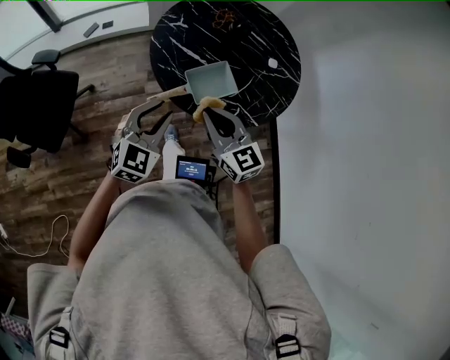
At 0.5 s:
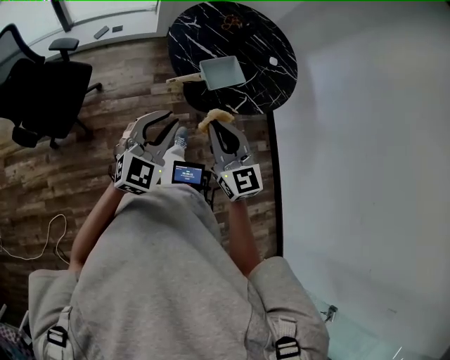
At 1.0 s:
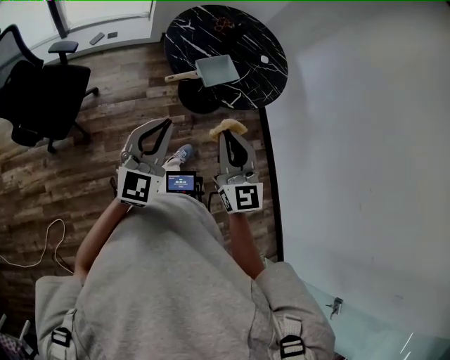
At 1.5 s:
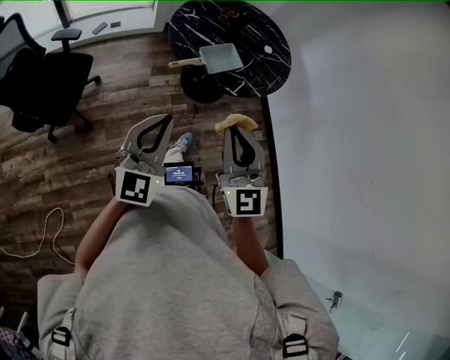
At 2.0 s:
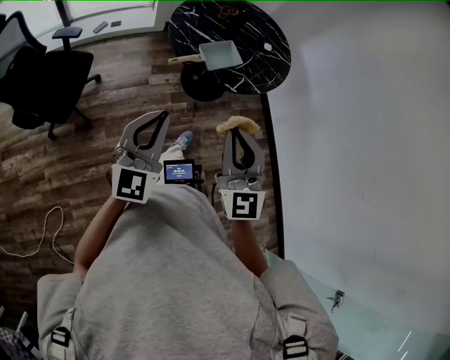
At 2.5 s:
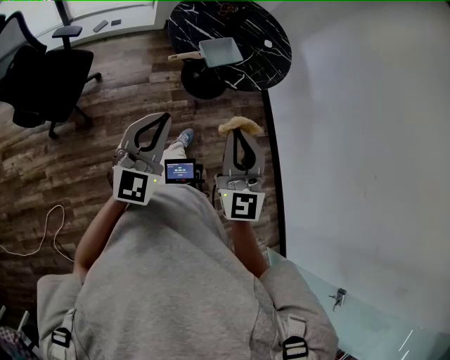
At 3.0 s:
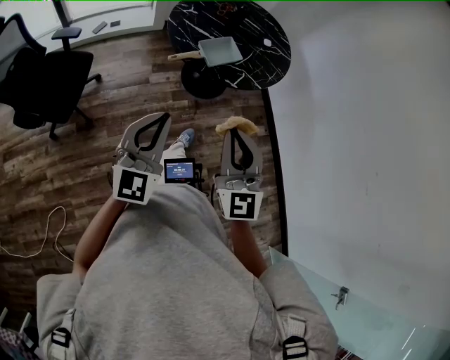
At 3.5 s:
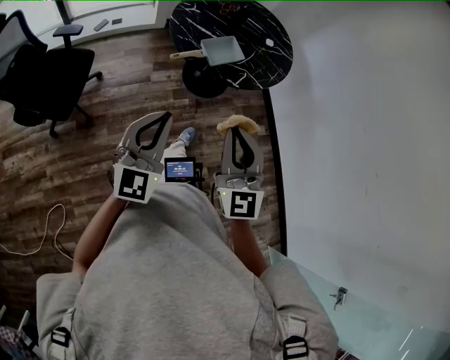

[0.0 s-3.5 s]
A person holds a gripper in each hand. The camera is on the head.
0.0 to 2.0 s: The left gripper shifts roughly 30 cm backward, rotates approximately 20 degrees, and closes up. The right gripper goes approximately 35 cm backward and upward, and changes its angle by about 40 degrees.
2.0 to 3.5 s: The grippers stay close to where they were, moving slightly.

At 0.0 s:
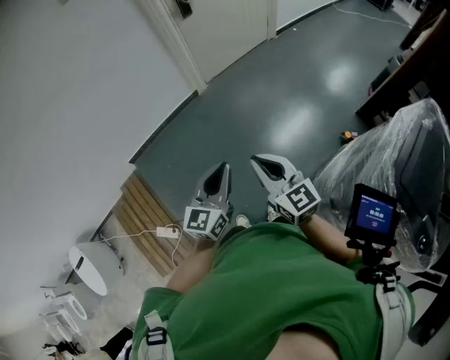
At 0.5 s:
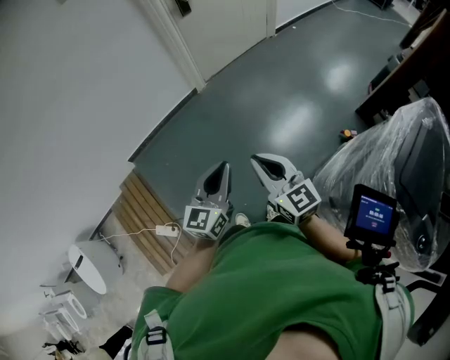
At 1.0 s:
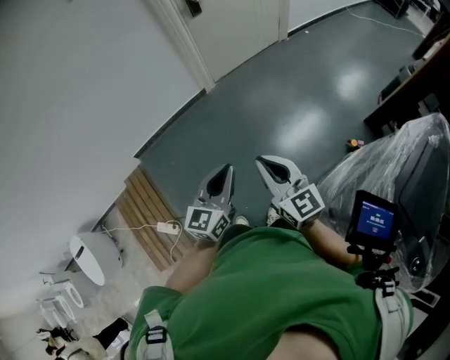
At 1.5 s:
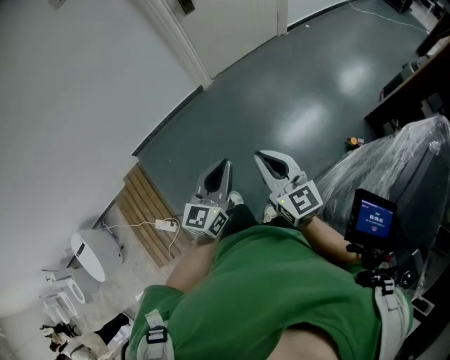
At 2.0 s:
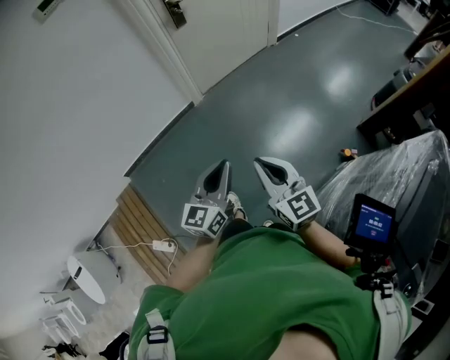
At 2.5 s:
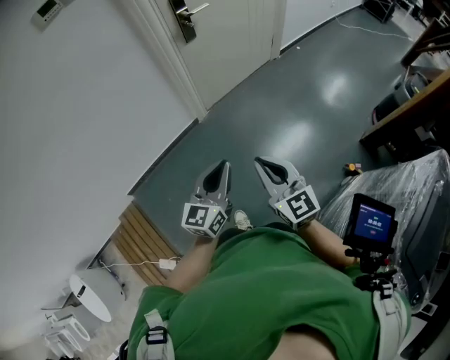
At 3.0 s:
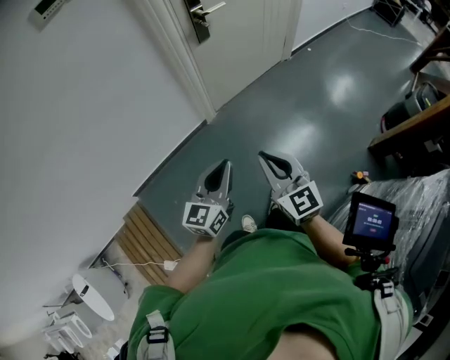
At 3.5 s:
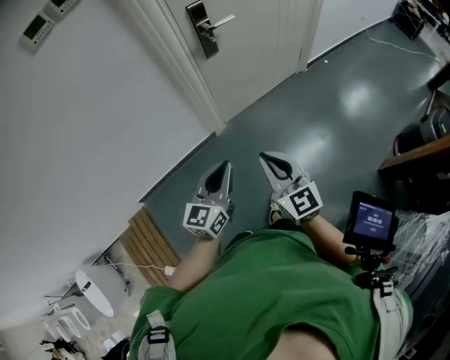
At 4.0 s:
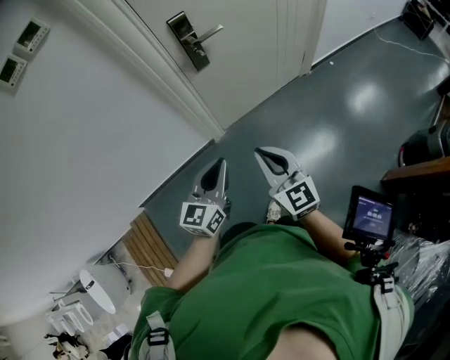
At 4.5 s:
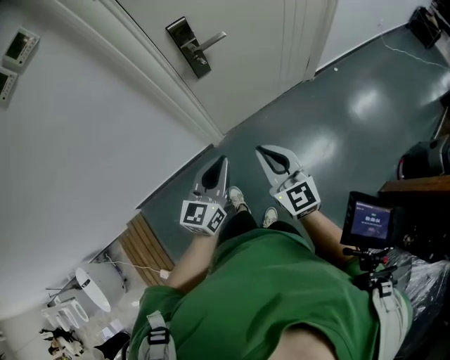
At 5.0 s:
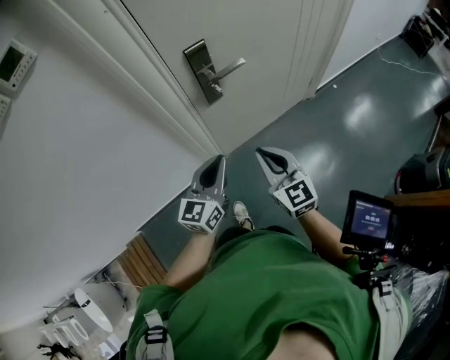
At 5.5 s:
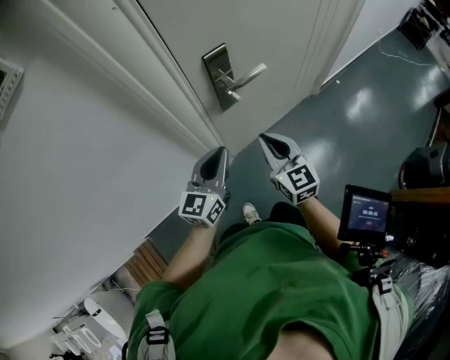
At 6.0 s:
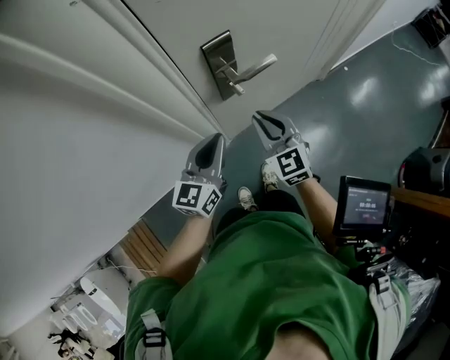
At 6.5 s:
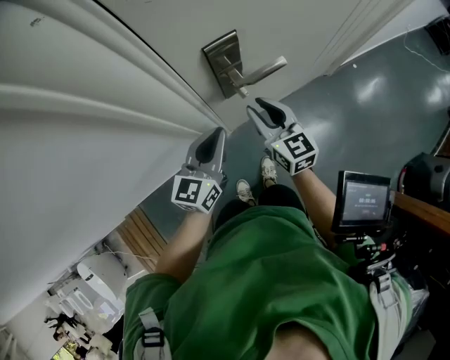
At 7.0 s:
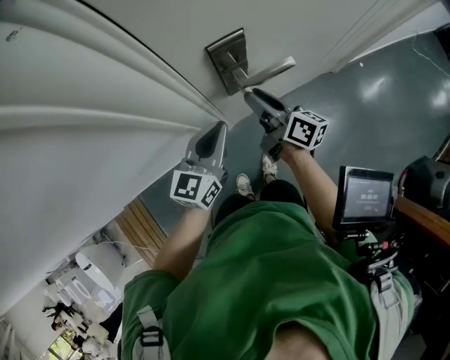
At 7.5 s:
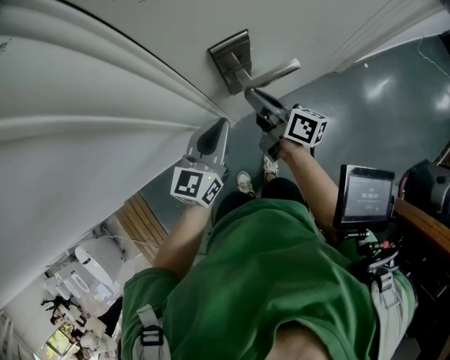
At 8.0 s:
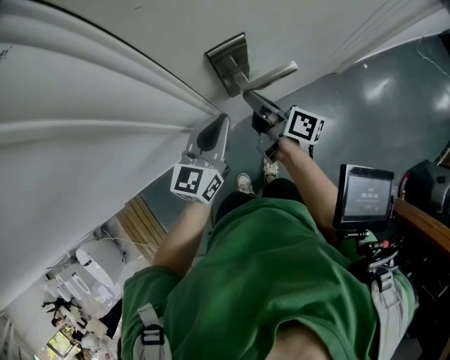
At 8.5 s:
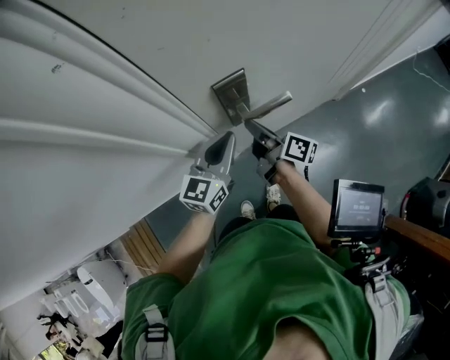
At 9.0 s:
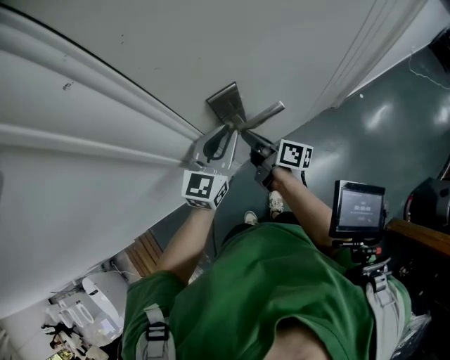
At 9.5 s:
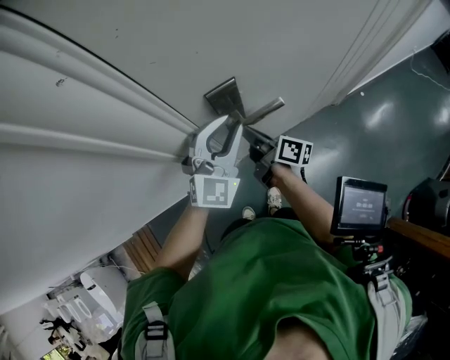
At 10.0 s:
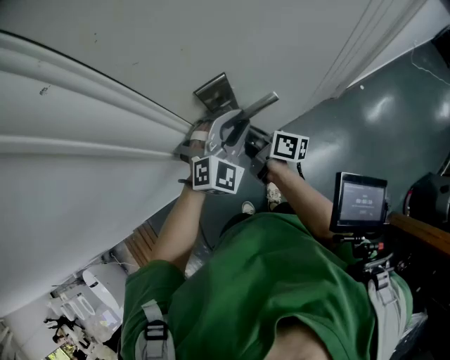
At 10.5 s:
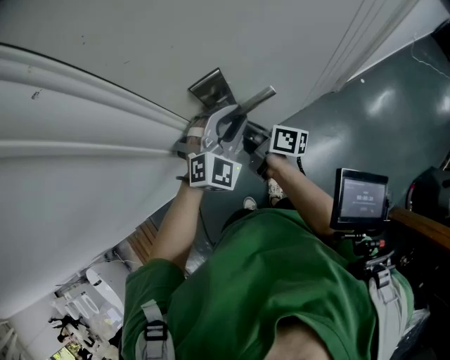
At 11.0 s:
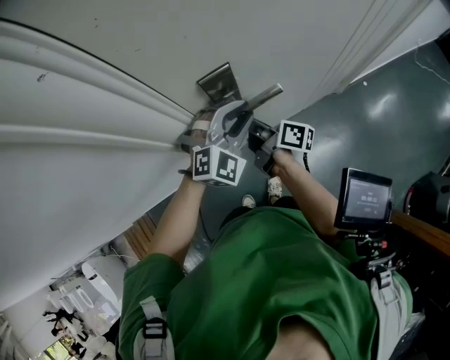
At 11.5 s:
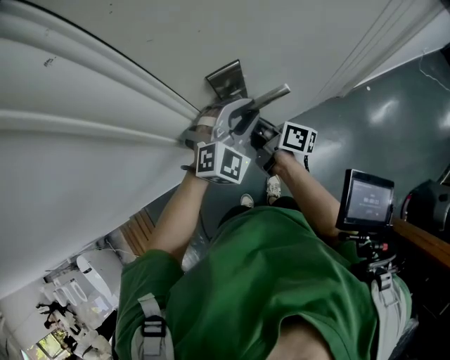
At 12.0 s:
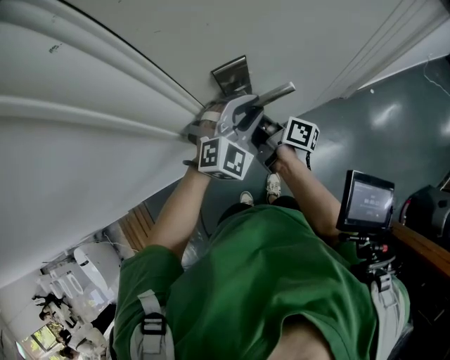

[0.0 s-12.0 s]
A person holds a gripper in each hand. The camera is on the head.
0.0 to 2.0 s: The left gripper heads forward and to the right, covering some 10 cm. Meanwhile the right gripper goes about 10 cm to the right and forward.
2.0 to 4.0 s: The two grippers travel together, forward, about 50 cm.
4.0 to 6.0 s: The grippers both shift forward by some 35 cm.
6.0 to 8.0 s: The two grippers go approximately 10 cm forward. The right gripper rolls clockwise, seen from behind, by roughly 80 degrees, and opens and closes again.
8.0 to 10.0 s: The left gripper heads to the right, covering about 5 cm, rotates around the line of its fingers by approximately 60 degrees, clockwise from behind, and opens up.
10.0 to 12.0 s: The grippers move only a little.

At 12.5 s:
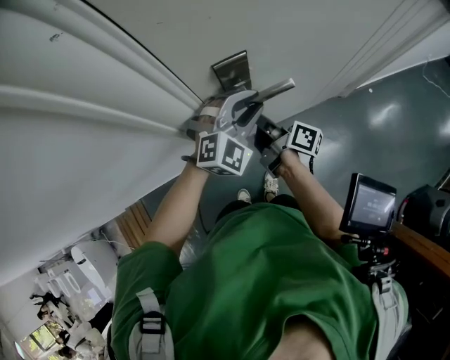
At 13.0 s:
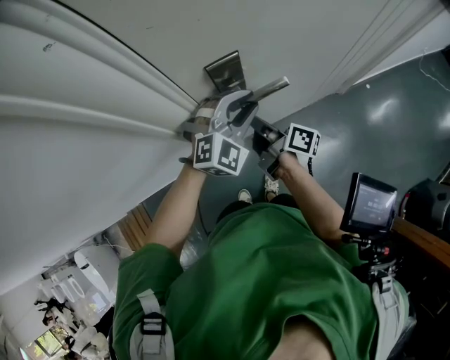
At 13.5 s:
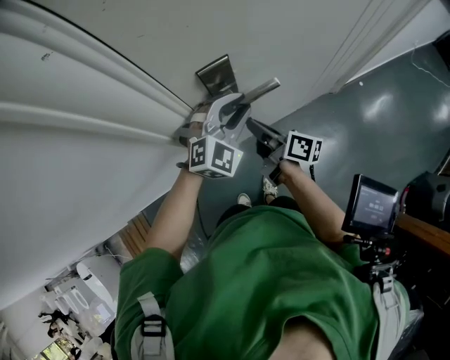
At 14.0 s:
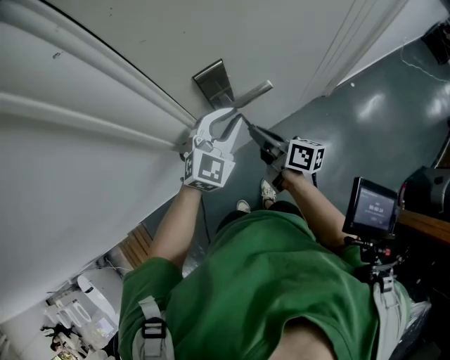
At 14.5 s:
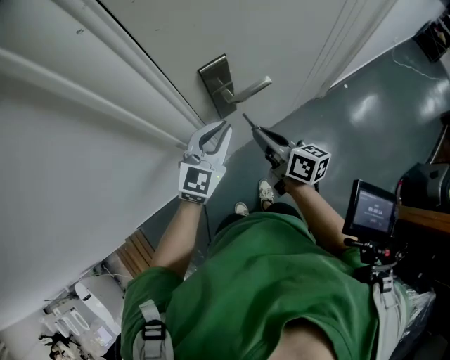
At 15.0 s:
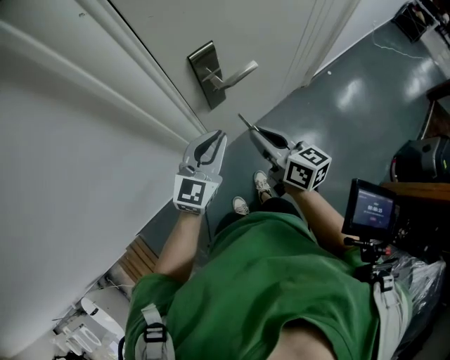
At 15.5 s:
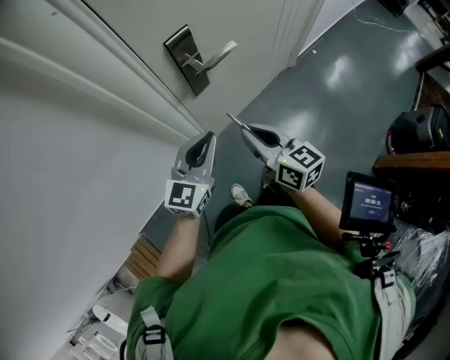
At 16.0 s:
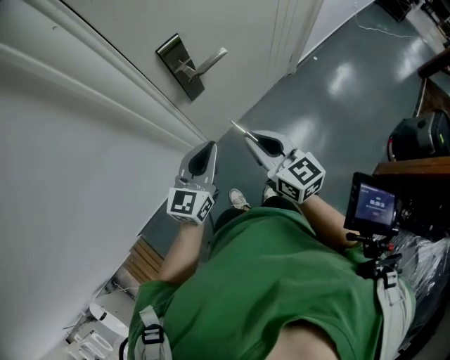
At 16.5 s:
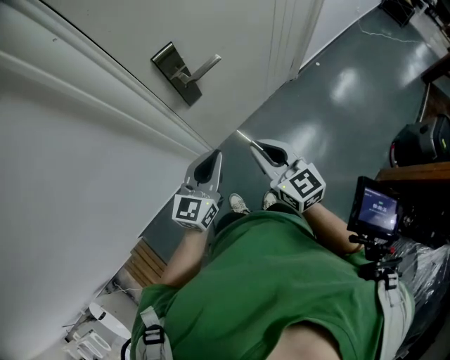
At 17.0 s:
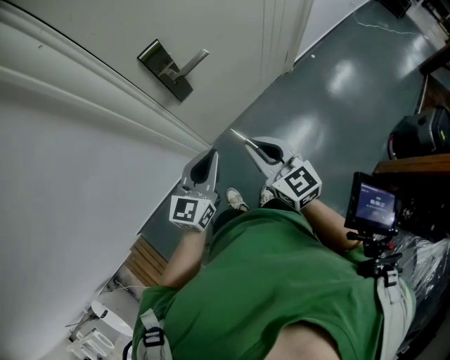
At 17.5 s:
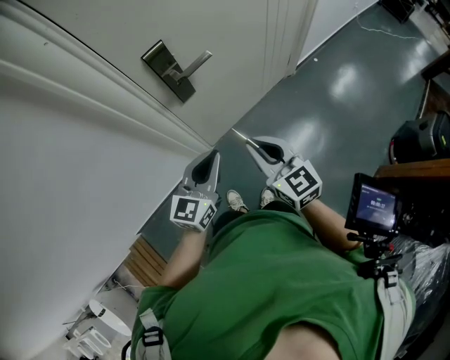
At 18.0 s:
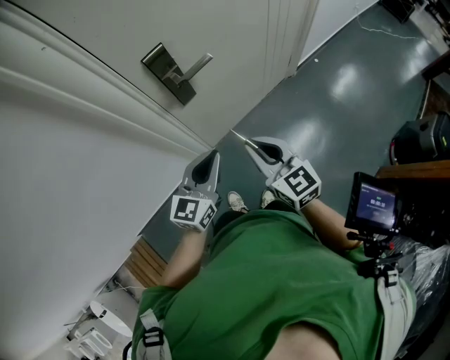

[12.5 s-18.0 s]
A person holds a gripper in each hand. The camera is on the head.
12.5 to 14.5 s: The left gripper heads backward, covering roughly 5 cm, and turns by some 30 degrees; the right gripper shifts about 10 cm upward and backward, and turns by some 30 degrees.
14.5 to 16.0 s: The two grippers go about 15 cm backward. The right gripper rotates roughly 30 degrees; the left gripper swivels roughly 20 degrees.
16.0 to 18.0 s: The left gripper changes place by roughly 5 cm.

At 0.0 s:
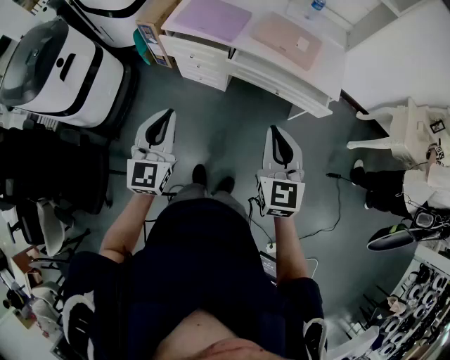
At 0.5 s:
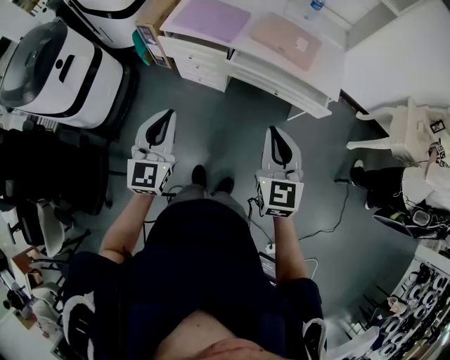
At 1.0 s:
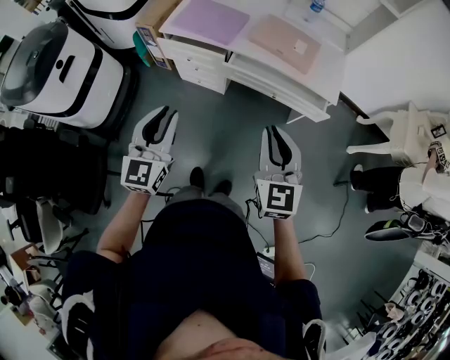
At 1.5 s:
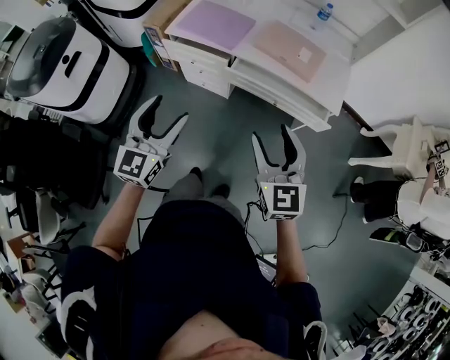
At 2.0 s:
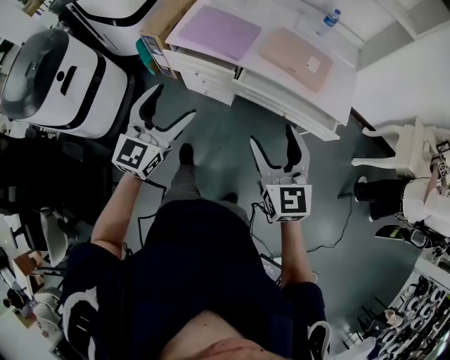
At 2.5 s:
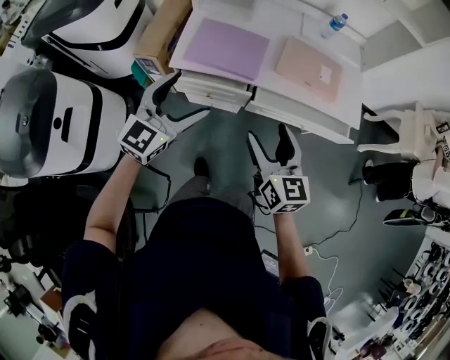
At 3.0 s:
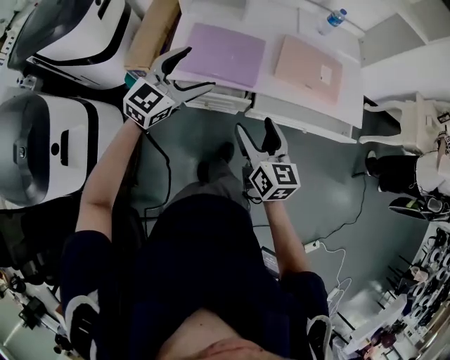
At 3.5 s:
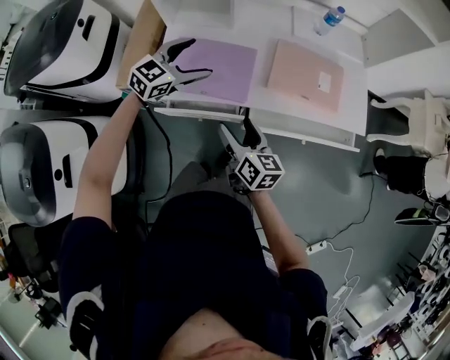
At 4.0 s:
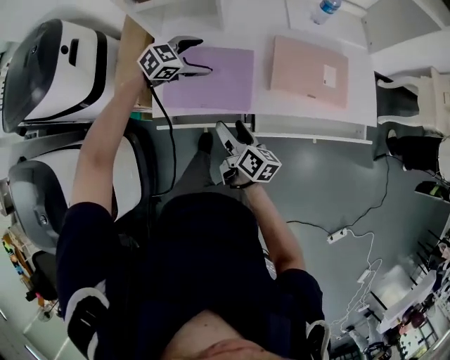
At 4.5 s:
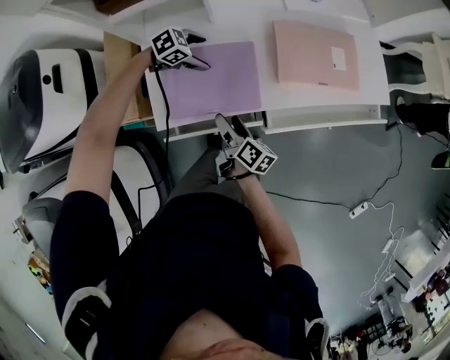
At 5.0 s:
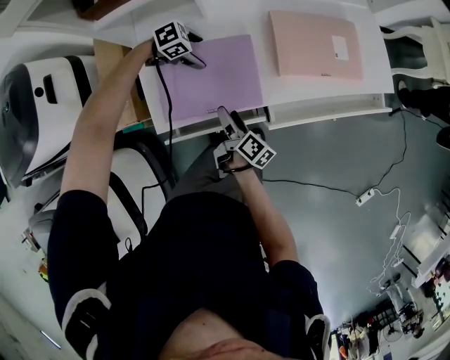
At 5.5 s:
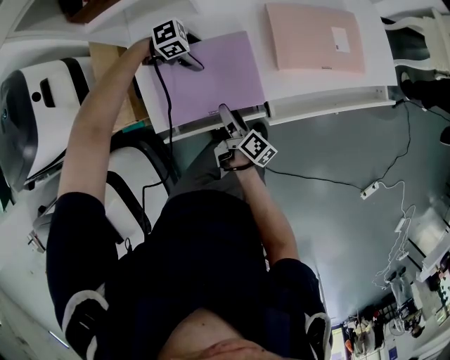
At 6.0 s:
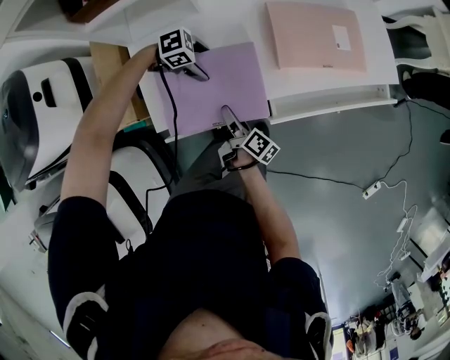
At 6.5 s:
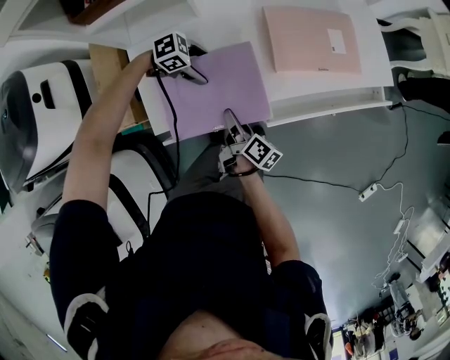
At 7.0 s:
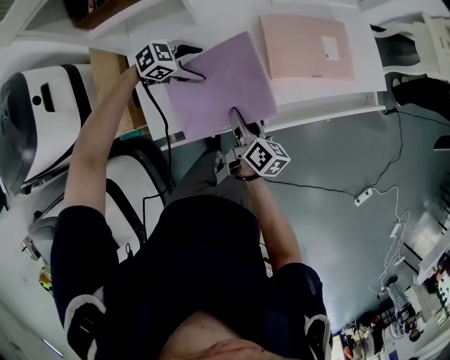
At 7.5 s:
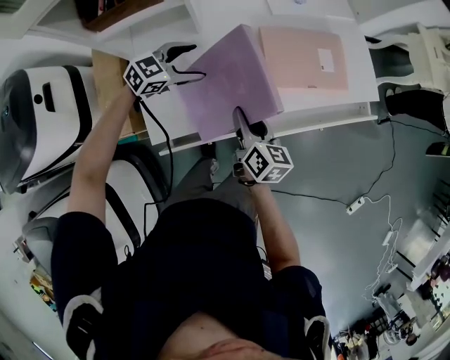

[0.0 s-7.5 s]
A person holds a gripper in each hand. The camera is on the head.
0.0 to 2.0 s: Both grippers move forward, roughly 10 cm. The left gripper opens up, while the right gripper opens up.
2.0 to 4.0 s: The left gripper changes place by approximately 50 cm, and tips its fingers downward by approximately 40 degrees. The right gripper changes place by some 40 cm, and twists about 70 degrees clockwise, seen from behind.
4.0 to 5.5 s: The grippers both shift downward by approximately 15 cm. The left gripper rotates roughly 50 degrees. The right gripper rotates roughly 30 degrees.
5.5 to 7.5 s: The grippers both shift upward by some 15 cm. The right gripper twists some 40 degrees counterclockwise, seen from behind, and closes. The left gripper rotates about 40 degrees.
